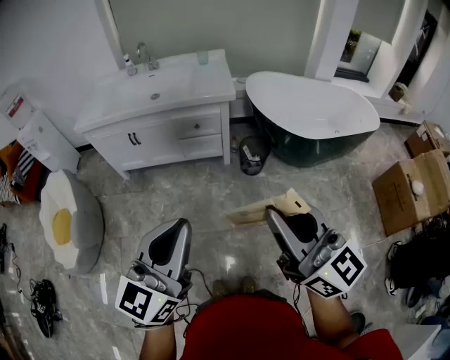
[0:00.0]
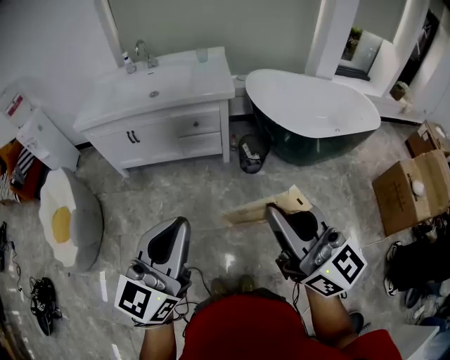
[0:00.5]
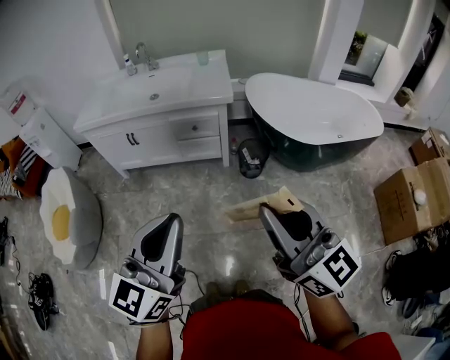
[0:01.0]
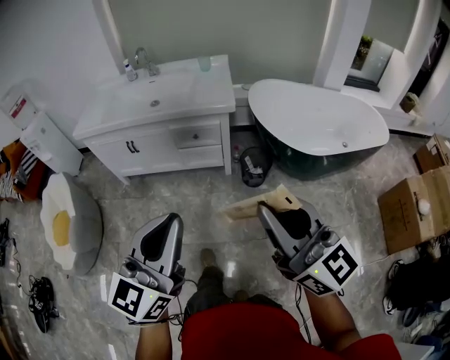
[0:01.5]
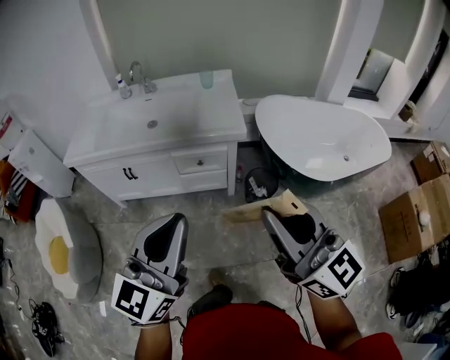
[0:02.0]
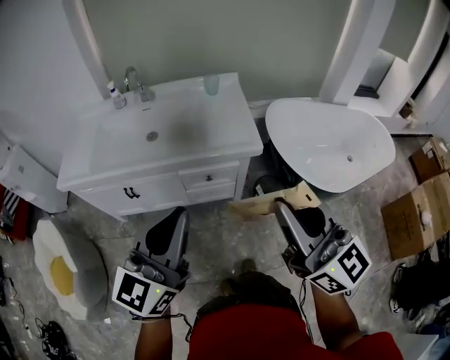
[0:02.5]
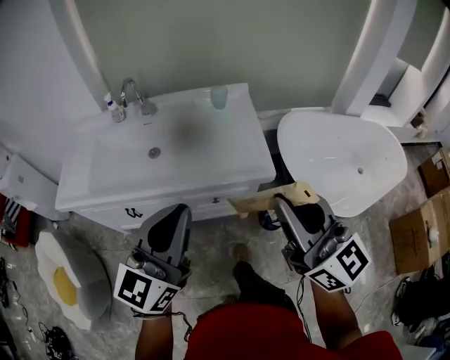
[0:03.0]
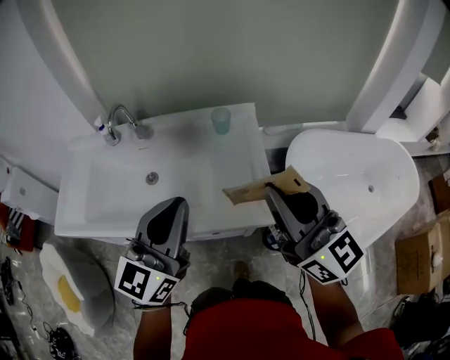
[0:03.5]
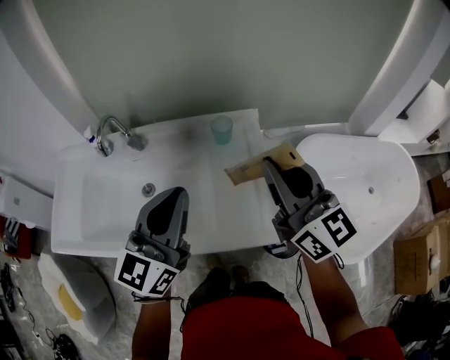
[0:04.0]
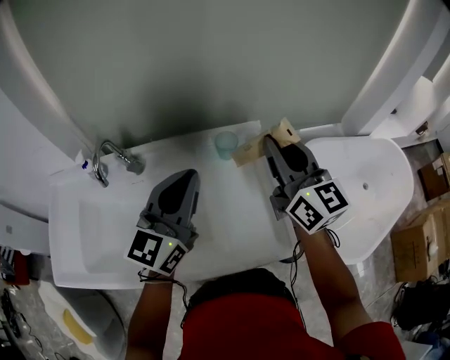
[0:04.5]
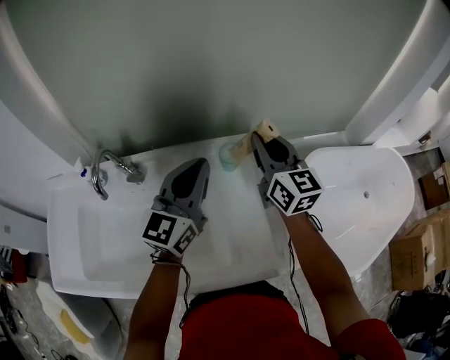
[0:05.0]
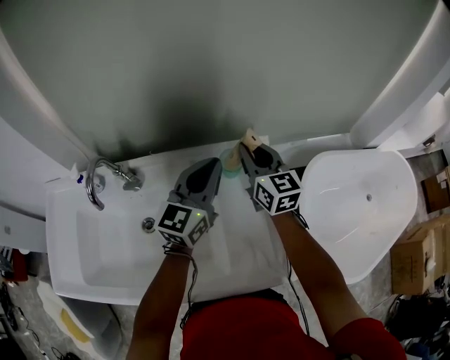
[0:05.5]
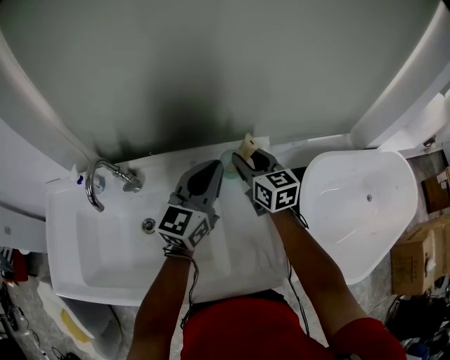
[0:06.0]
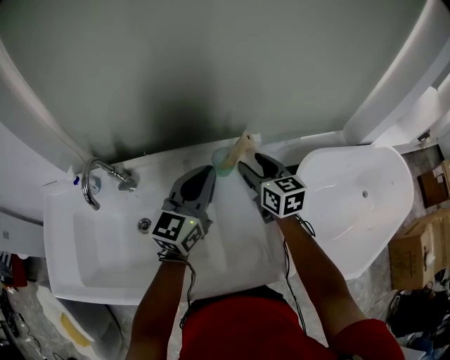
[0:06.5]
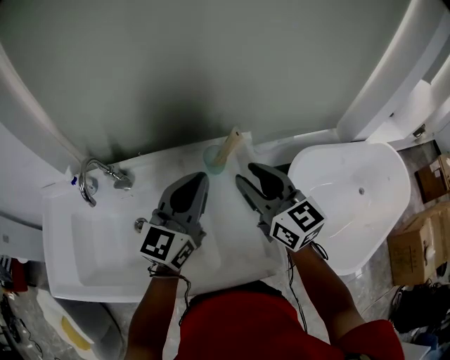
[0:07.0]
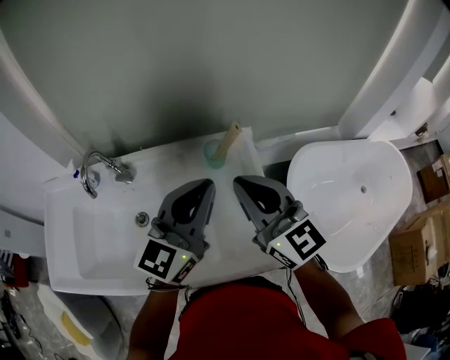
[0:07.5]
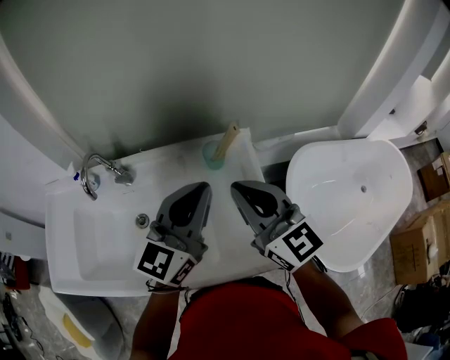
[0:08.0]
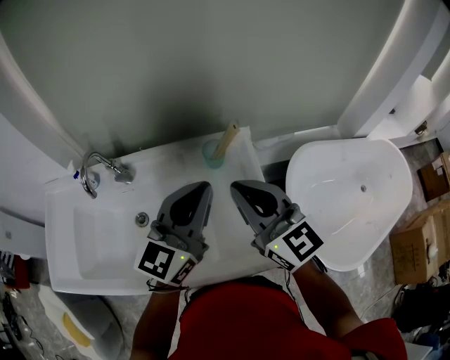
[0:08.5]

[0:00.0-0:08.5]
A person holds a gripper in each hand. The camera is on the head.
0:00.0 to 0:02.0: The grippers both shift forward by approximately 25 cm.
0:02.0 to 0:04.0: The pair of grippers is taken forward, approximately 50 cm.
0:04.0 to 0:06.5: The two grippers go roughly 25 cm forward and downward. The right gripper swivels about 30 degrees, and opens its fingers.
0:06.5 to 0:08.5: The left gripper is displaced backward and upward by about 10 cm; the right gripper is displaced backward and upward by approximately 20 cm, changes its angle by about 30 degrees, and closes.

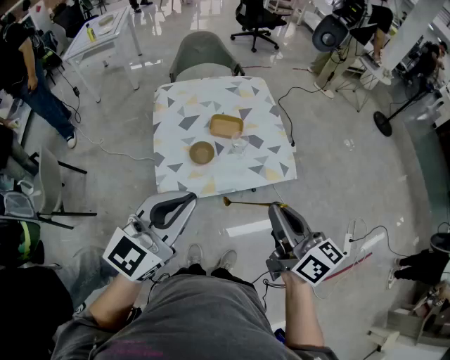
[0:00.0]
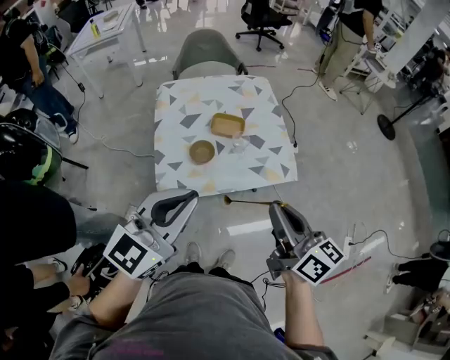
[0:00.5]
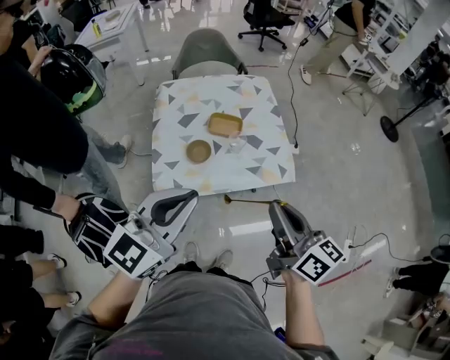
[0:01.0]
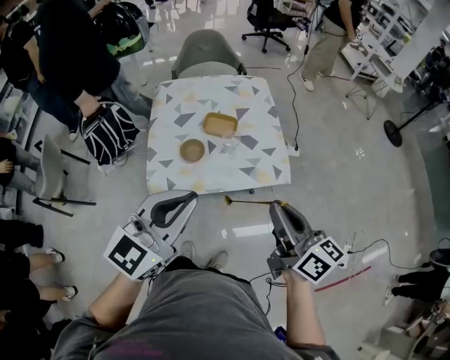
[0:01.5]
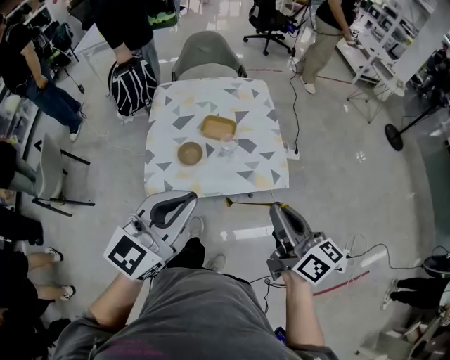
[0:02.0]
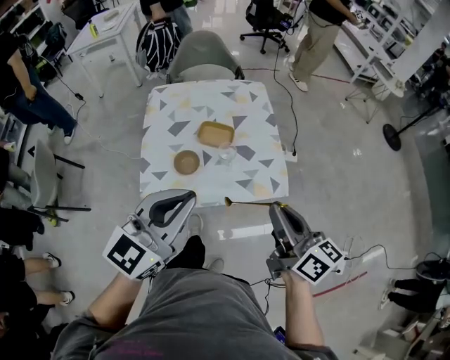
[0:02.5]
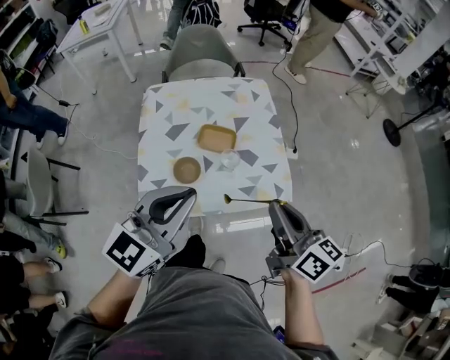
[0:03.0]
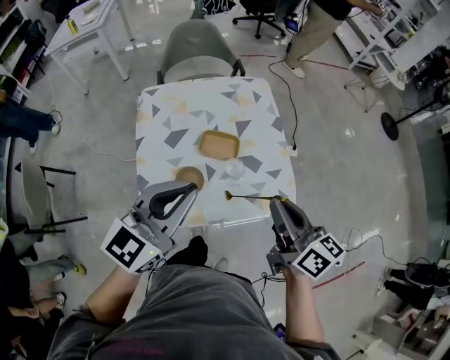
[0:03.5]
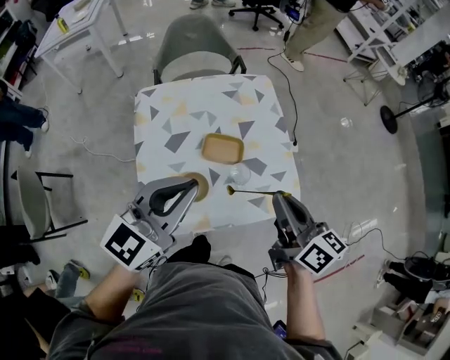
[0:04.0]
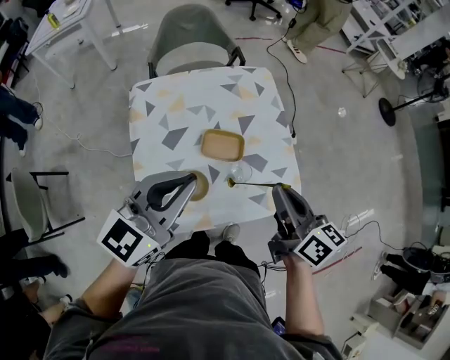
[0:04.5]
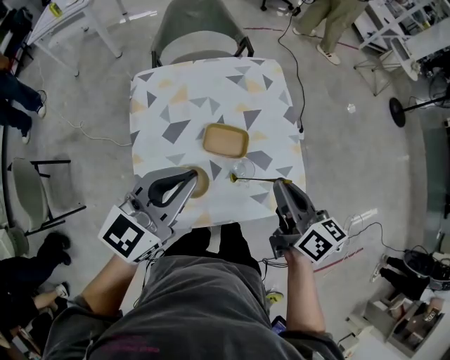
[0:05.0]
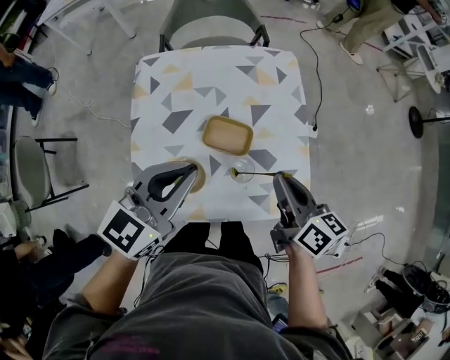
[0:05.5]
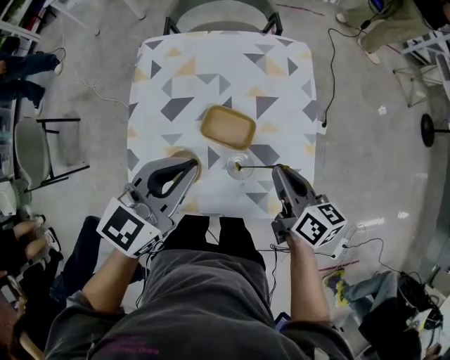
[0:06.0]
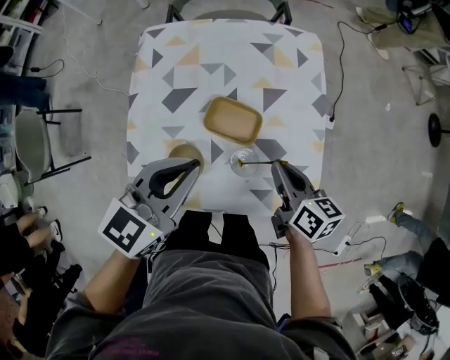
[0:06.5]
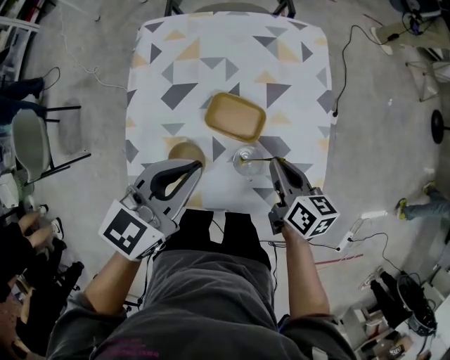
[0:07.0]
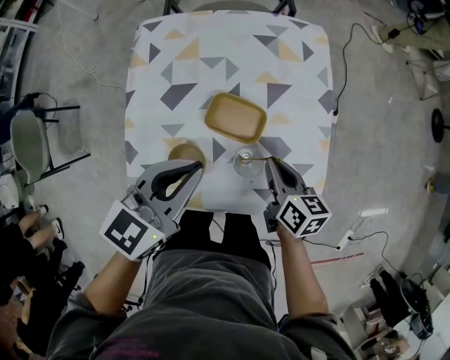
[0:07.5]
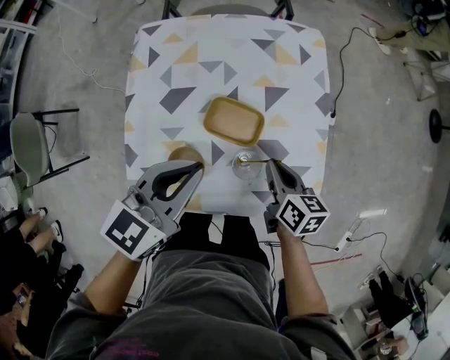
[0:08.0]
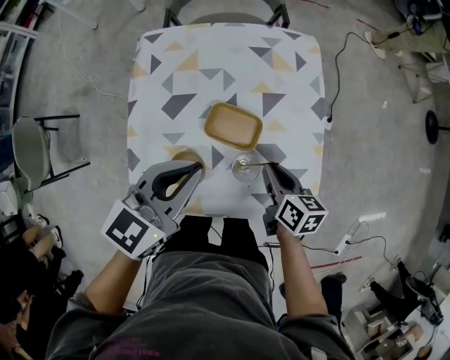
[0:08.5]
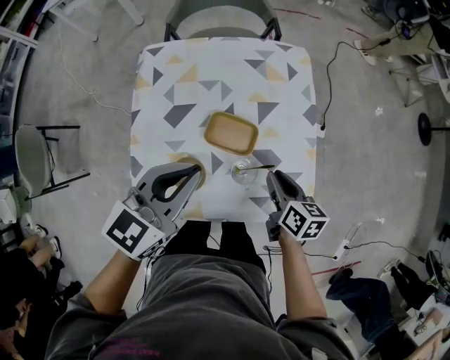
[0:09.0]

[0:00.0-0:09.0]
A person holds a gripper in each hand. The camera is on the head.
0:00.0 to 0:02.0: The grippers both shift to the right by approximately 10 cm.
0:02.0 to 0:04.5: The two grippers go some 30 cm forward and to the left.
0:04.5 to 0:07.0: The two grippers go about 20 cm downward. The left gripper rotates some 30 degrees, while the right gripper turns by approximately 20 degrees.
0:07.0 to 0:09.0: The left gripper is displaced upward by roughly 5 cm.

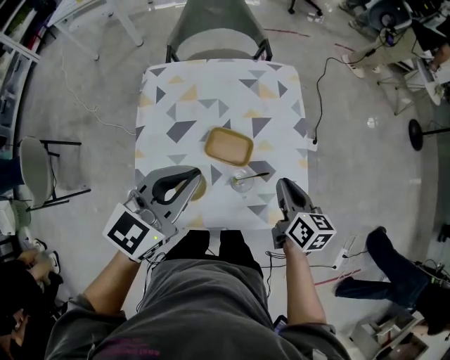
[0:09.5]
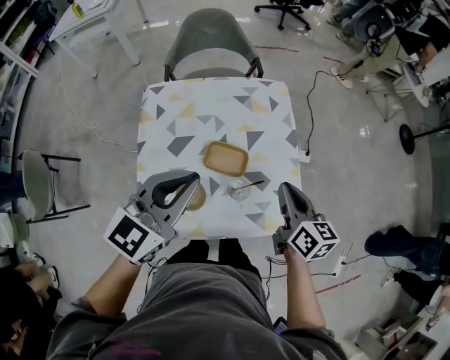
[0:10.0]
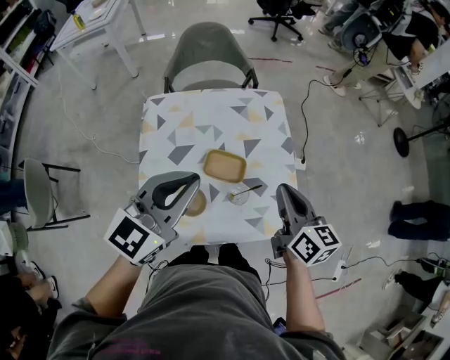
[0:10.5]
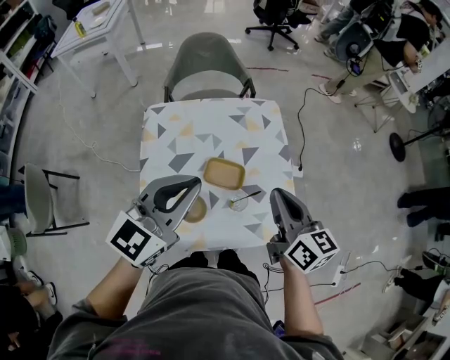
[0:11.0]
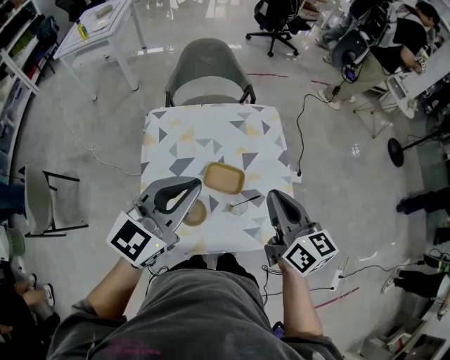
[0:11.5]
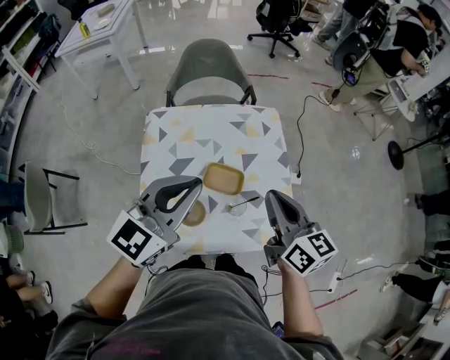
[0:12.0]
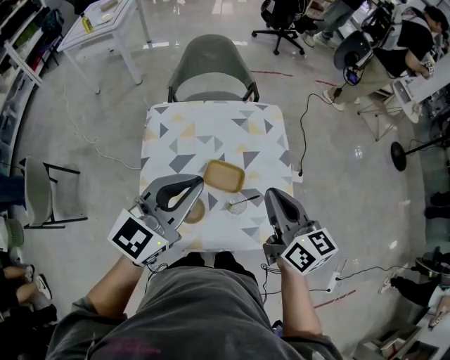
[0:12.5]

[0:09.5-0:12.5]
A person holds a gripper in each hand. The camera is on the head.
0:09.5 to 0:11.0: The left gripper is displaced upward by roughly 10 cm; the right gripper goes roughly 15 cm upward.
0:11.0 to 0:12.5: The grippers stay close to where they were, moving slightly.

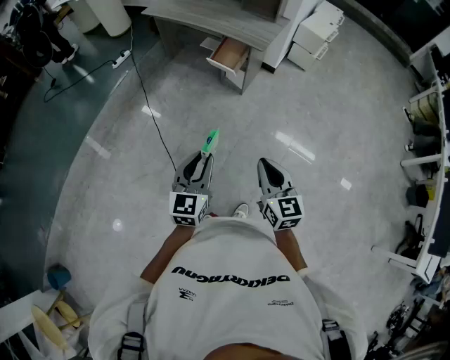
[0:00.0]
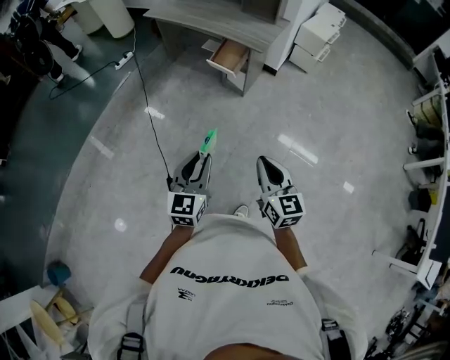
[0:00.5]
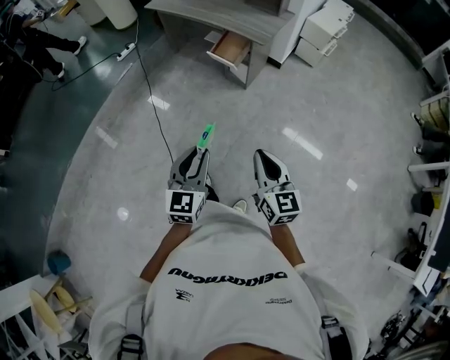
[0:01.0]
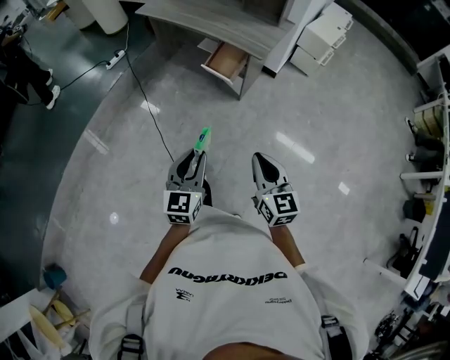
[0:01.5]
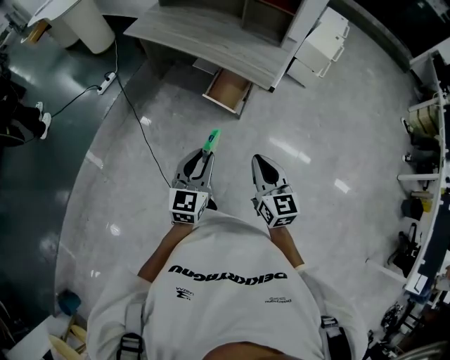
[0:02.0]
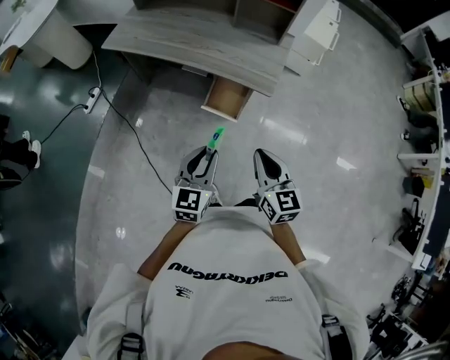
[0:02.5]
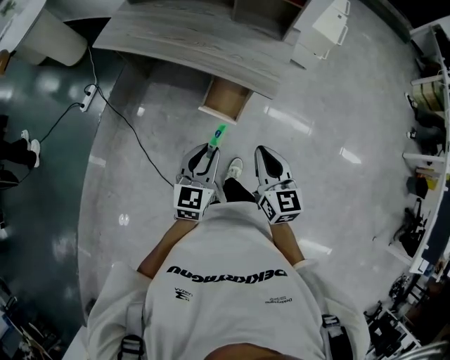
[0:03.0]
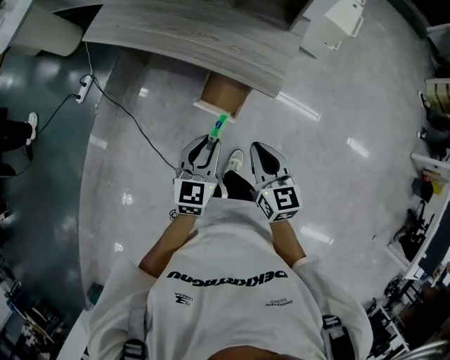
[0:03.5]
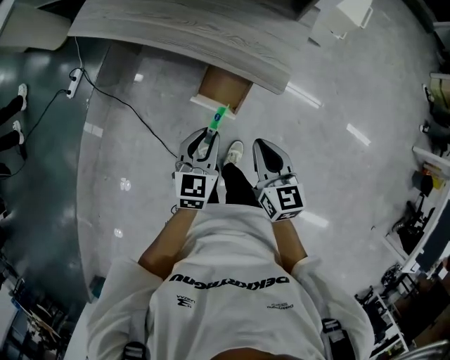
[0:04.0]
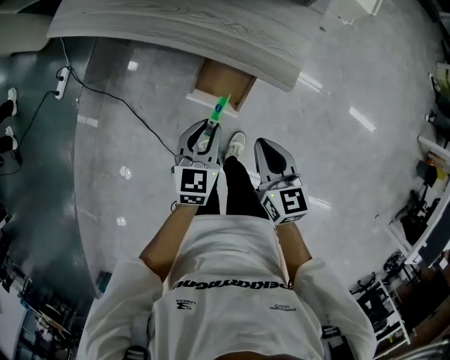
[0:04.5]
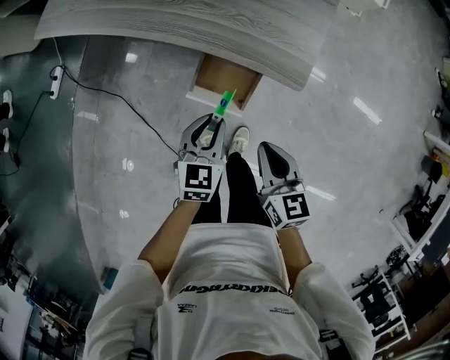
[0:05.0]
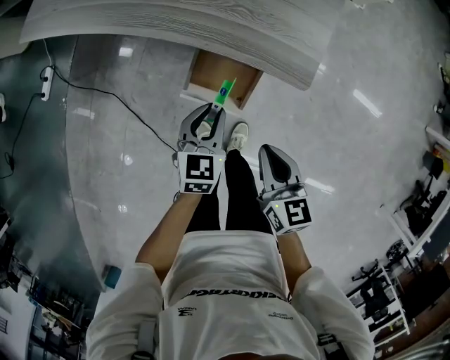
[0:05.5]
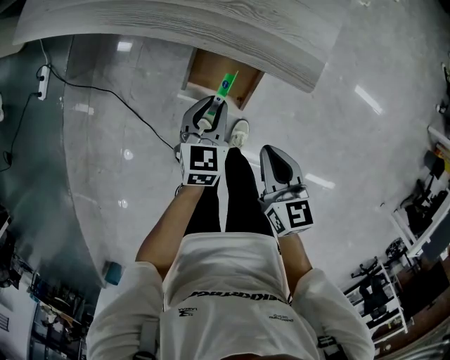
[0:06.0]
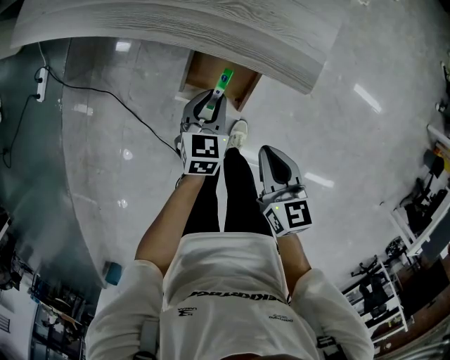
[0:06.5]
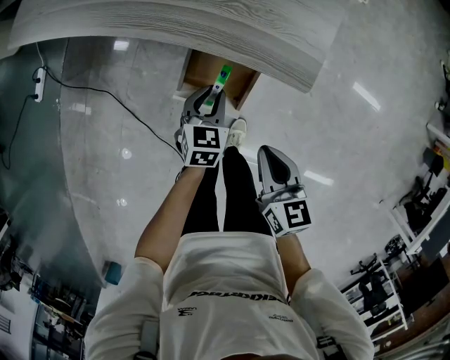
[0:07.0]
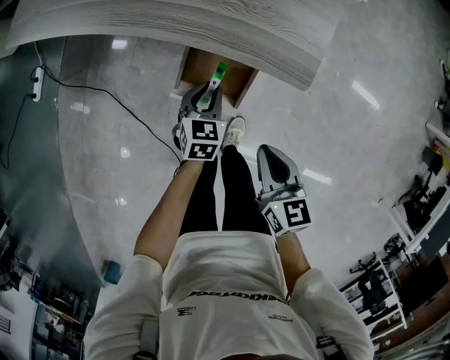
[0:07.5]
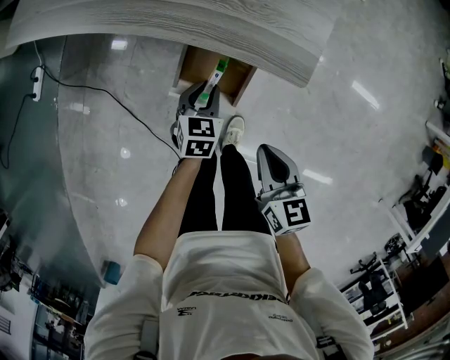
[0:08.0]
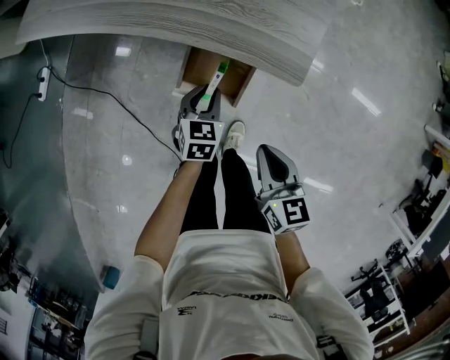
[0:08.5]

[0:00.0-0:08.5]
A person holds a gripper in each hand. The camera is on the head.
0:00.0 to 0:02.0: Both grippers move forward, roughly 35 cm.
0:02.0 to 0:04.0: Both grippers travel together forward and downward, about 35 cm.
0:04.0 to 0:06.5: The left gripper shifts approximately 25 cm downward and forward, while the right gripper goes some 15 cm downward.
0:06.5 to 0:08.5: The grippers stay close to where they were, moving slightly.
